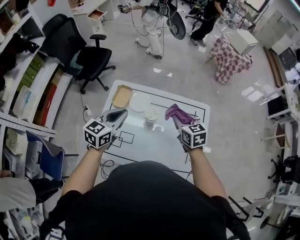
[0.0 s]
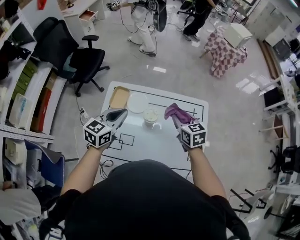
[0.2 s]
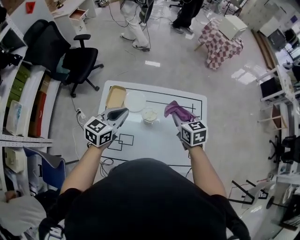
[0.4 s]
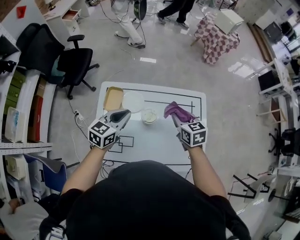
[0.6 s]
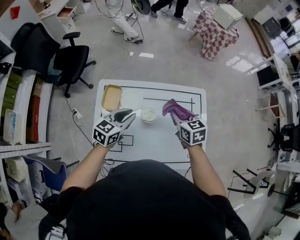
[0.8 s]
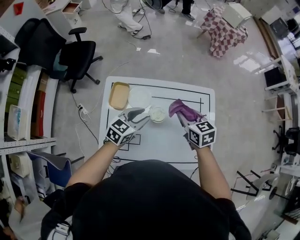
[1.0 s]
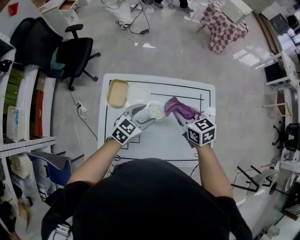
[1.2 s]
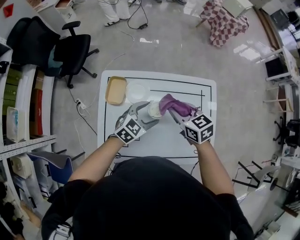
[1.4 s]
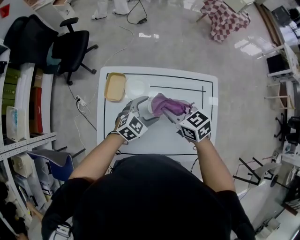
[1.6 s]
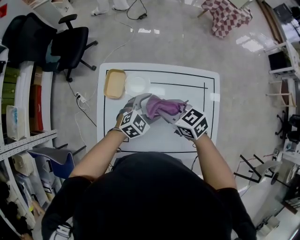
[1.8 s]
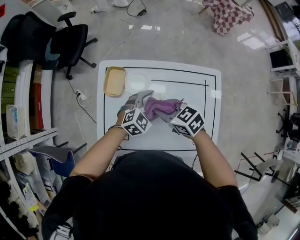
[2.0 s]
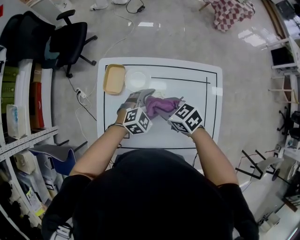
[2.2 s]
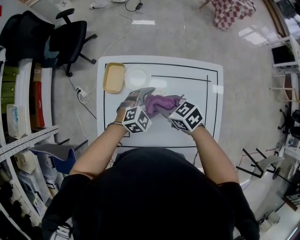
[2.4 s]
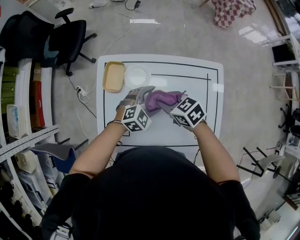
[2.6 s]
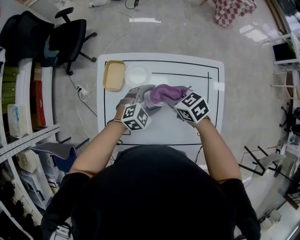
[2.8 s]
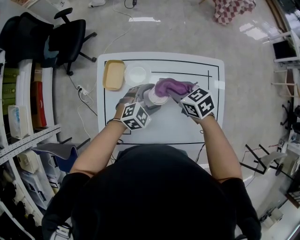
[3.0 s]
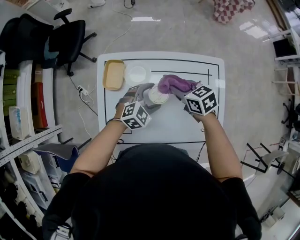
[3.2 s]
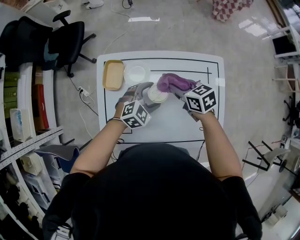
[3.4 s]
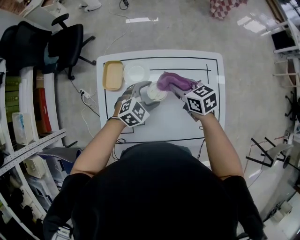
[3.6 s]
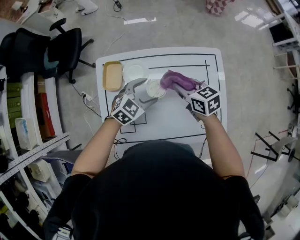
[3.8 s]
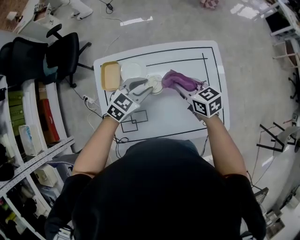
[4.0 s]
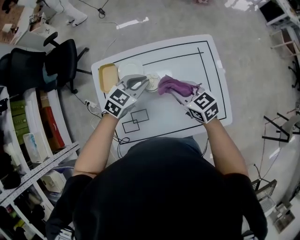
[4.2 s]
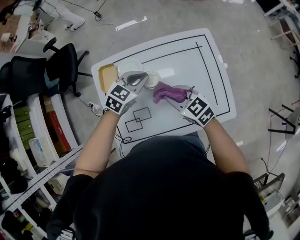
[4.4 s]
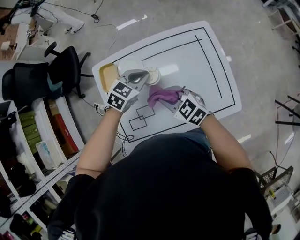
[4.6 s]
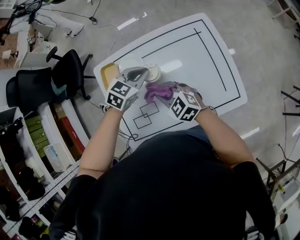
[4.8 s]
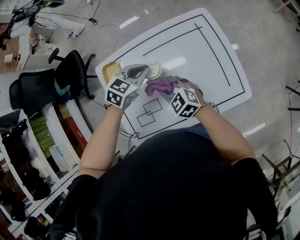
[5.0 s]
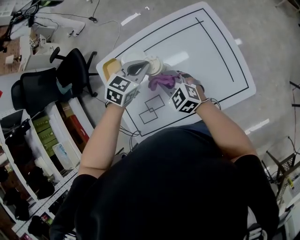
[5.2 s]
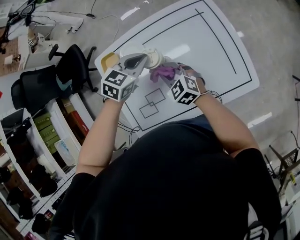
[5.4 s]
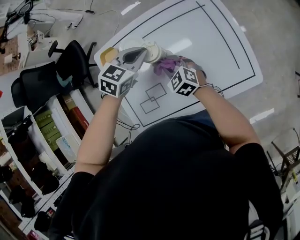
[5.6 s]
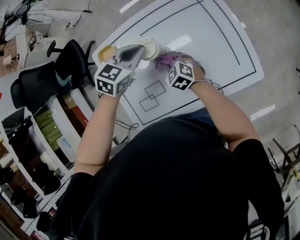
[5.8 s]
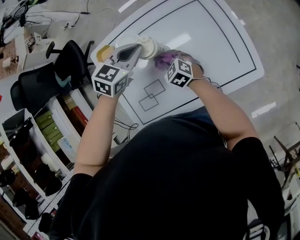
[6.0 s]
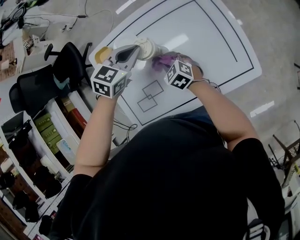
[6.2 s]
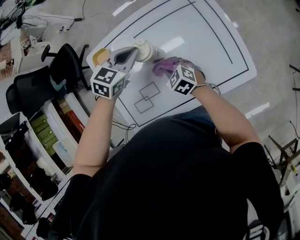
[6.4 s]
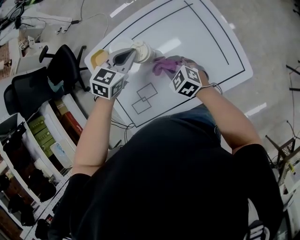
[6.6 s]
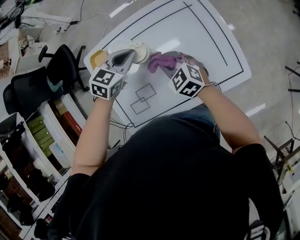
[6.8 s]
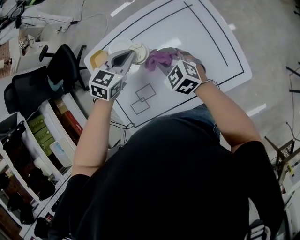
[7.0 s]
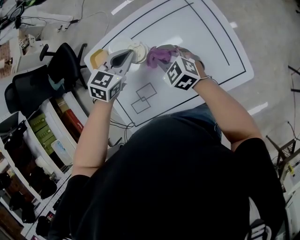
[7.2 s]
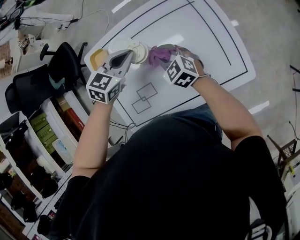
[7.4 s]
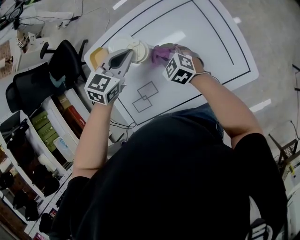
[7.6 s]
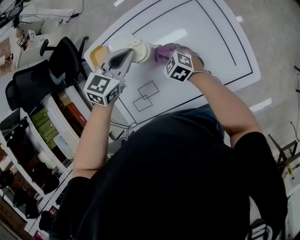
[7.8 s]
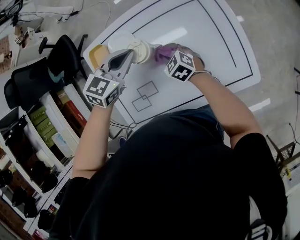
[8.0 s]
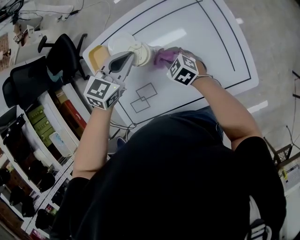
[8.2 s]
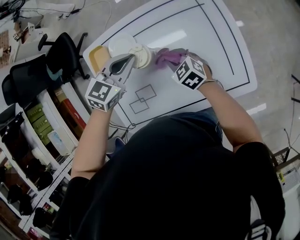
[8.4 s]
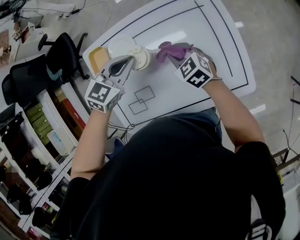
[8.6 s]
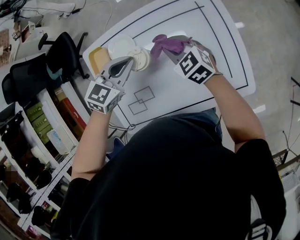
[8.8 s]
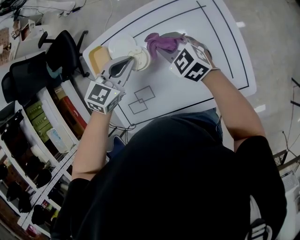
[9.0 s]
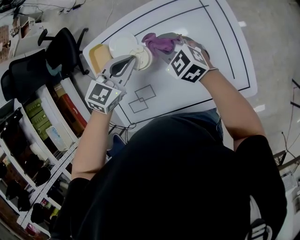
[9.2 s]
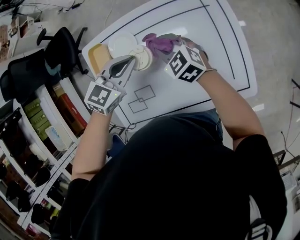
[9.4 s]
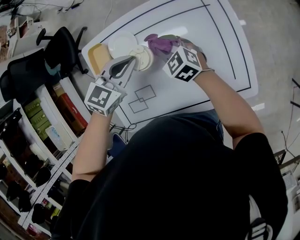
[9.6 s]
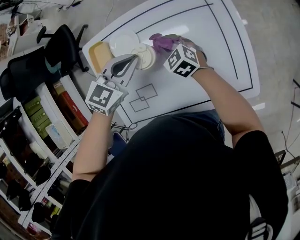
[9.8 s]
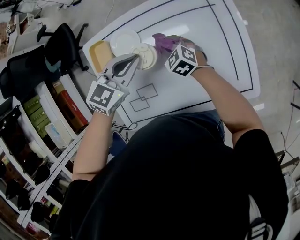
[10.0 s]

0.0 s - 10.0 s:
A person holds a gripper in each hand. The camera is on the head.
0.0 s - 1.4 s: The right gripper moves to the left, forward and downward, roughly 10 cm. Meanwhile the left gripper travels downward, forward and to the right by approximately 20 cm, changes its angle by some 40 degrees, and opens up.
1.4 s - 2.8 s: The grippers both shift downward by roughly 5 cm. The left gripper changes its angle by approximately 20 degrees.
2.8 s - 4.2 s: The left gripper goes roughly 5 cm upward, and closes up. Meanwhile the right gripper moves to the right and backward, about 10 cm, and rotates roughly 20 degrees.
4.2 s - 5.8 s: The right gripper heads downward, covering about 20 cm, and rotates approximately 30 degrees, while the left gripper shifts by roughly 5 cm.
5.8 s - 7.2 s: The right gripper is displaced upward by approximately 10 cm.
8.6 s - 10.0 s: The right gripper is displaced downward and to the left by roughly 10 cm.

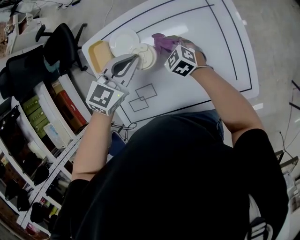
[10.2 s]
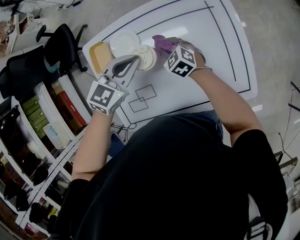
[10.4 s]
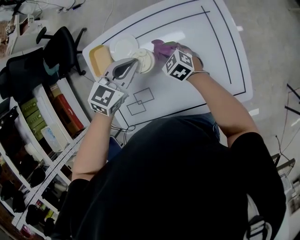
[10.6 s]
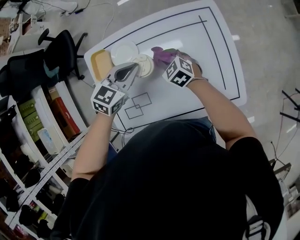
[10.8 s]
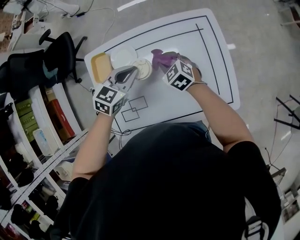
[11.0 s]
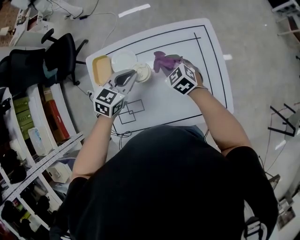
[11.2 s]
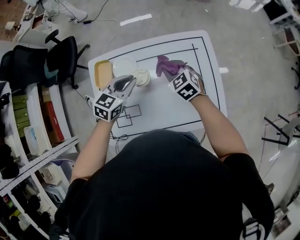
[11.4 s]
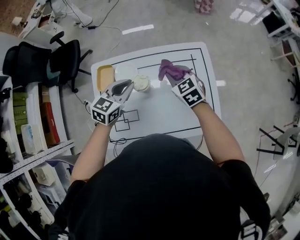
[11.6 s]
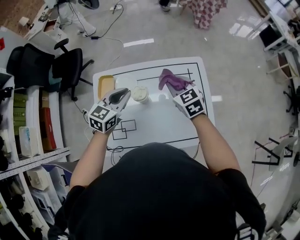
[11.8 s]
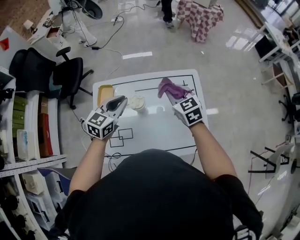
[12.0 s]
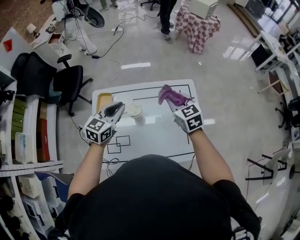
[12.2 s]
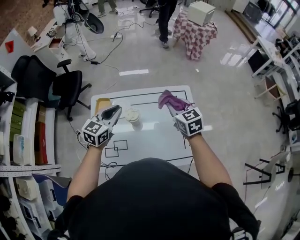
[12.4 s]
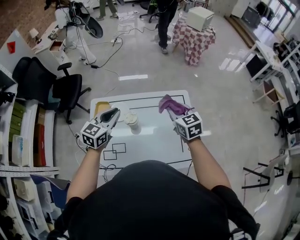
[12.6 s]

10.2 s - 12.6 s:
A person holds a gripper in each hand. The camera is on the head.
10.2 s - 11.4 s: The left gripper travels upward by about 5 cm. Meanwhile the right gripper is displaced upward by roughly 20 cm.
11.4 s - 12.6 s: The left gripper goes approximately 15 cm upward; the right gripper travels upward and to the right by approximately 20 cm, and rotates some 20 degrees.

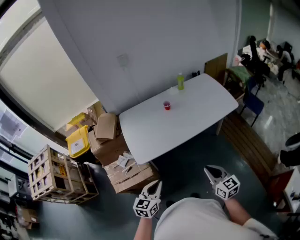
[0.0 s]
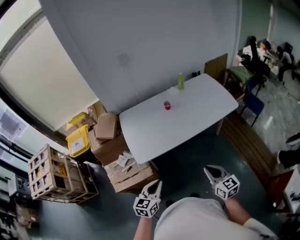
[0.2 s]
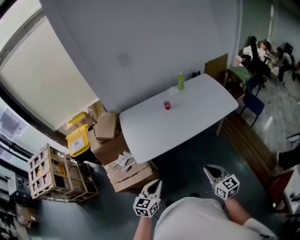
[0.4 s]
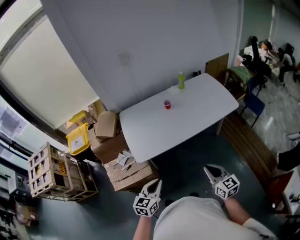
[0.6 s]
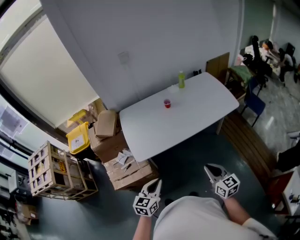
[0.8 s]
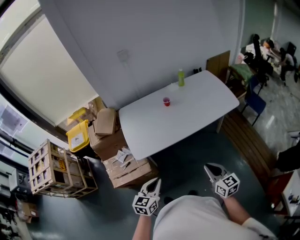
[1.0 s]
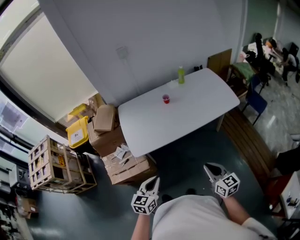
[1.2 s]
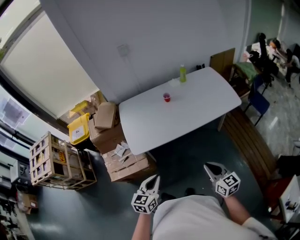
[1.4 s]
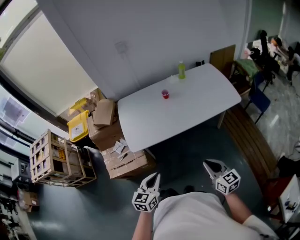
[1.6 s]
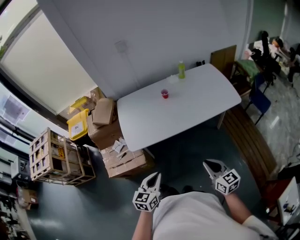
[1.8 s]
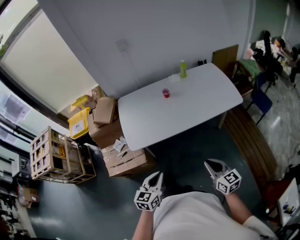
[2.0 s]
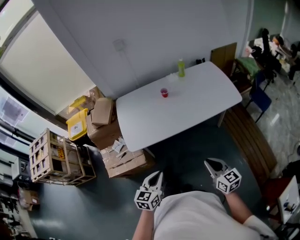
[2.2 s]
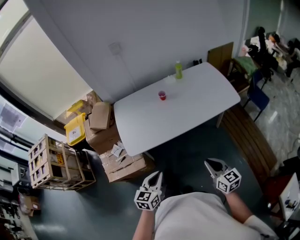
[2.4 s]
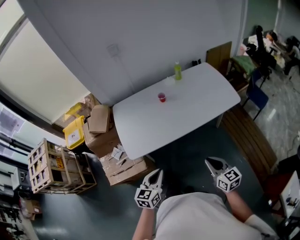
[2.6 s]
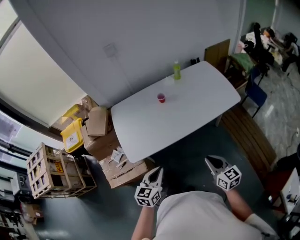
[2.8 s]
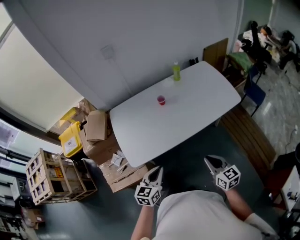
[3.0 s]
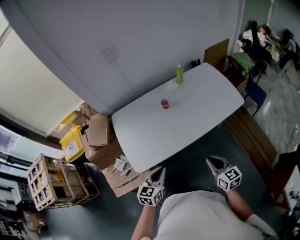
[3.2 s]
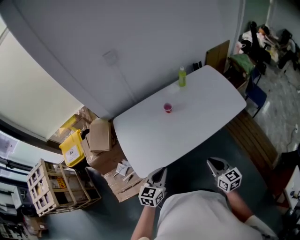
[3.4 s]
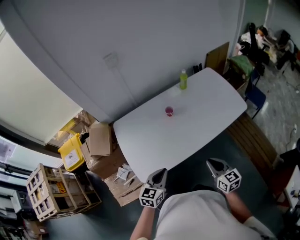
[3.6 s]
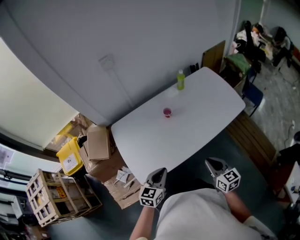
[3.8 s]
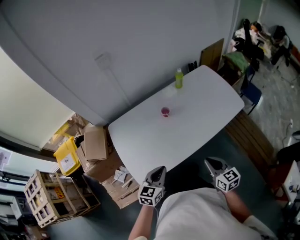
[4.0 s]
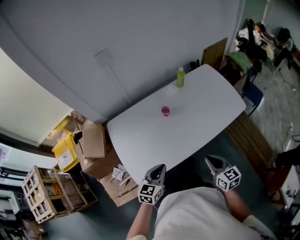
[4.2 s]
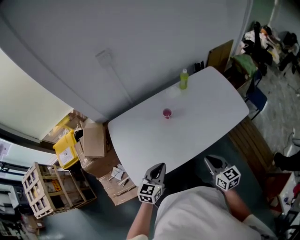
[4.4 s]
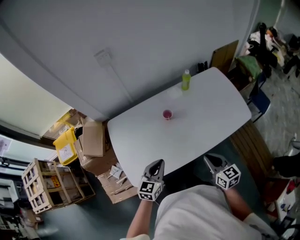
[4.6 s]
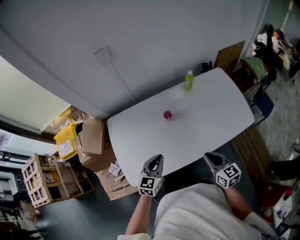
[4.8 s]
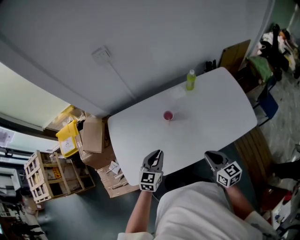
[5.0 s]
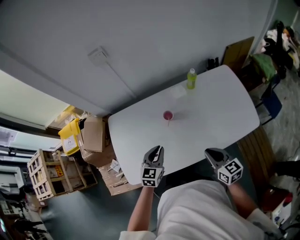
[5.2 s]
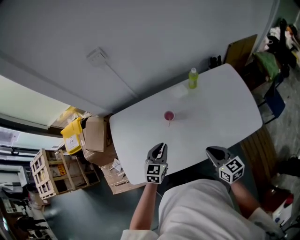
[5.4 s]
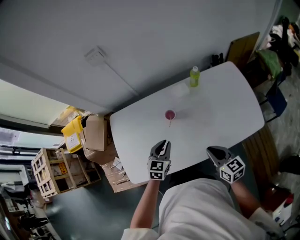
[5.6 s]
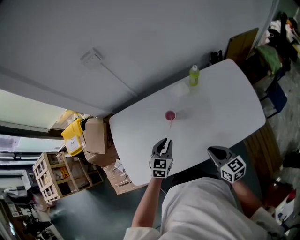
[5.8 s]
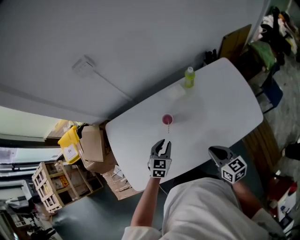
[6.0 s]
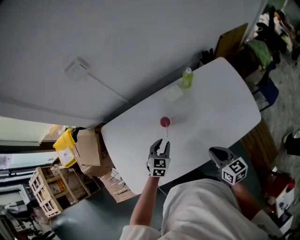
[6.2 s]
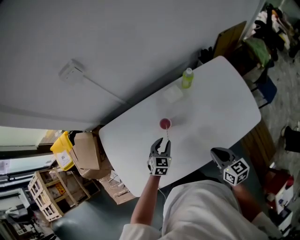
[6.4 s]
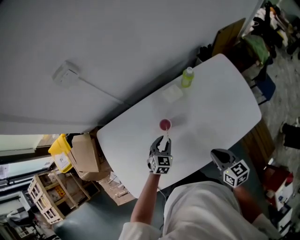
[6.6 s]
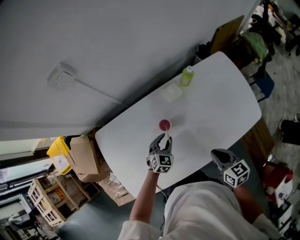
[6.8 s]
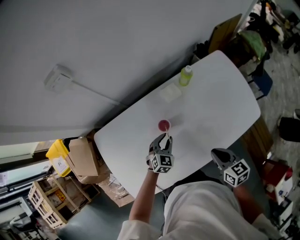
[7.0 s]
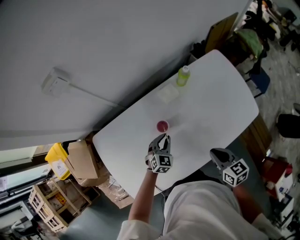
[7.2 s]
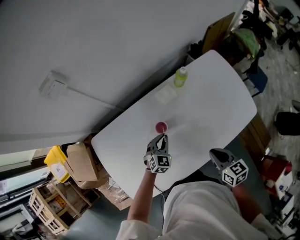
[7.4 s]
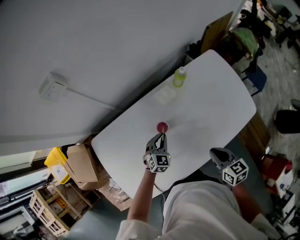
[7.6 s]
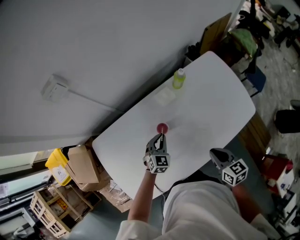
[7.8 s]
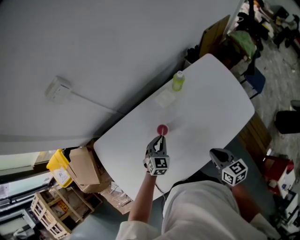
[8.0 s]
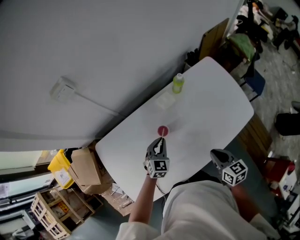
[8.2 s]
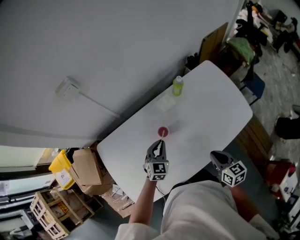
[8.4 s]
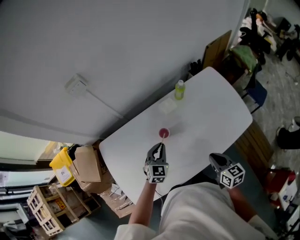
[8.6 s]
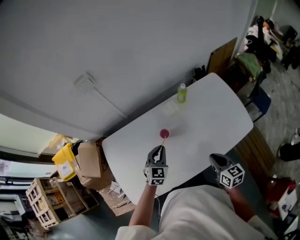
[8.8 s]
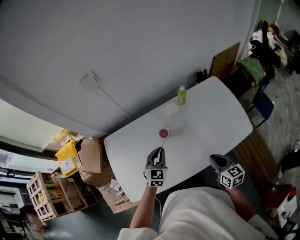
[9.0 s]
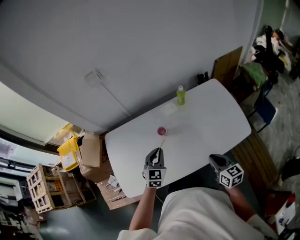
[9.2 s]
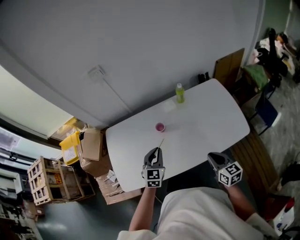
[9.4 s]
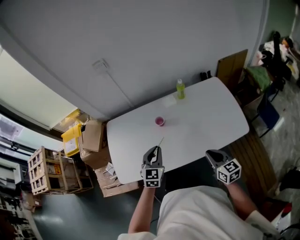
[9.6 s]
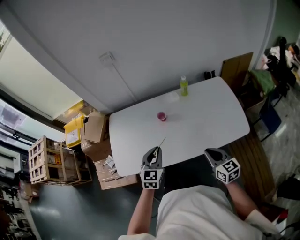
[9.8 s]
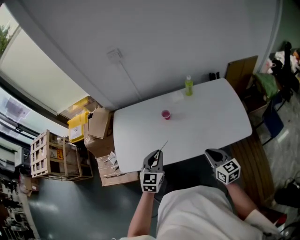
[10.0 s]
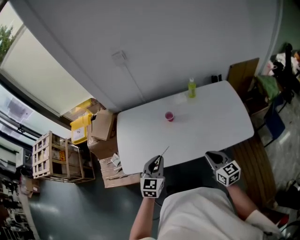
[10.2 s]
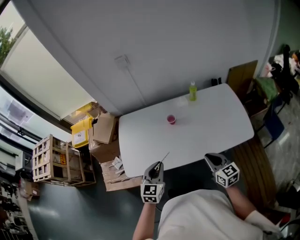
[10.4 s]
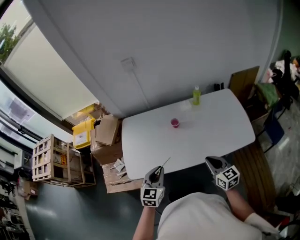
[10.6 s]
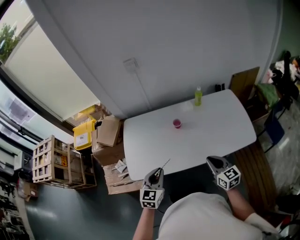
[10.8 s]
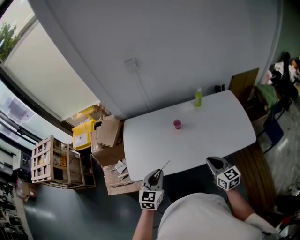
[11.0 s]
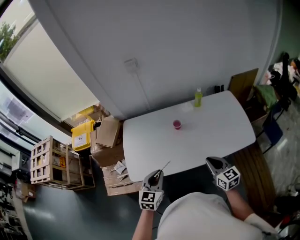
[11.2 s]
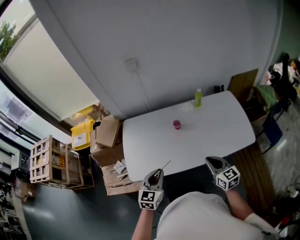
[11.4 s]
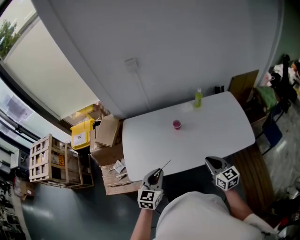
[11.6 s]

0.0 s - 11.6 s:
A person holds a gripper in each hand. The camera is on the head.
0.0 s - 1.4 s: The right gripper moves to the right, approximately 5 cm.
1.4 s - 2.8 s: The two grippers go roughly 10 cm forward.
2.8 s - 4.4 s: The two grippers go about 20 cm forward.
4.4 s - 5.8 s: The left gripper travels forward, downward and to the right by some 20 cm. Meanwhile the right gripper goes about 15 cm forward and to the right.
5.8 s - 7.2 s: The left gripper shifts about 15 cm downward and forward, and rotates approximately 30 degrees.
7.2 s - 8.8 s: The left gripper moves upward, some 15 cm; the right gripper shifts by some 5 cm.
8.8 s - 10.2 s: The right gripper goes some 10 cm backward, and swivels approximately 30 degrees. The left gripper goes approximately 25 cm backward and upward.
10.2 s - 11.6 s: Both grippers move to the left, about 5 cm.
